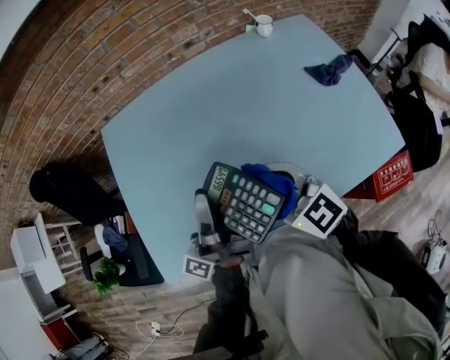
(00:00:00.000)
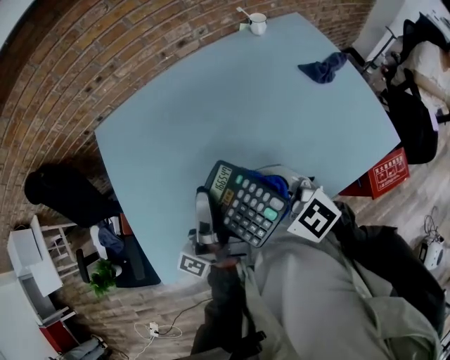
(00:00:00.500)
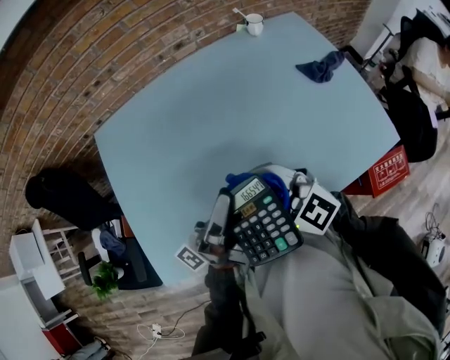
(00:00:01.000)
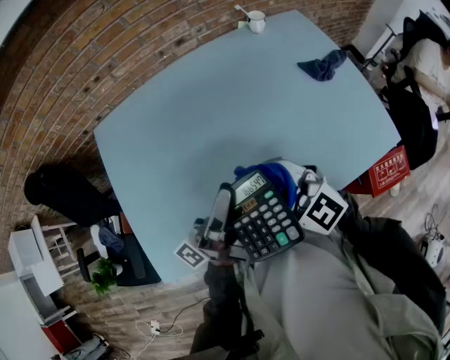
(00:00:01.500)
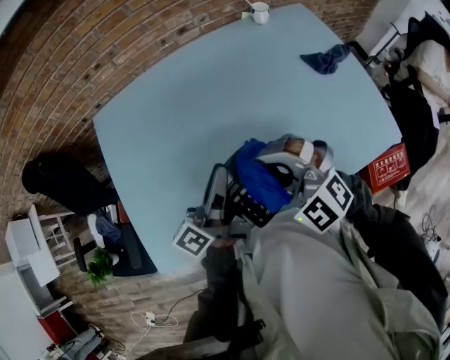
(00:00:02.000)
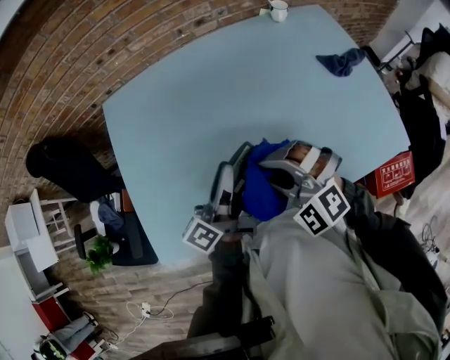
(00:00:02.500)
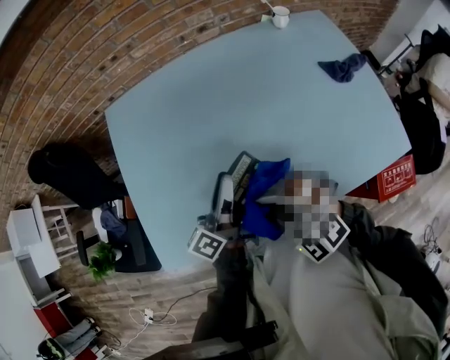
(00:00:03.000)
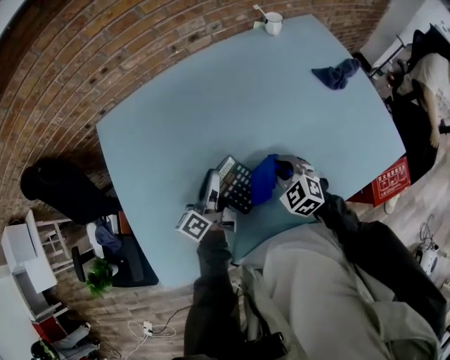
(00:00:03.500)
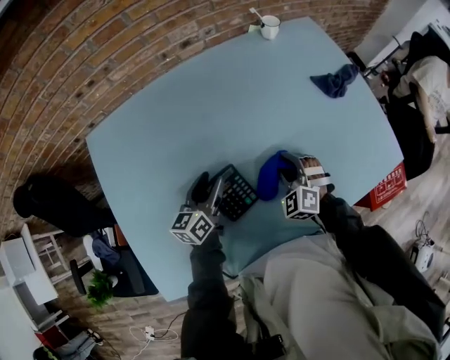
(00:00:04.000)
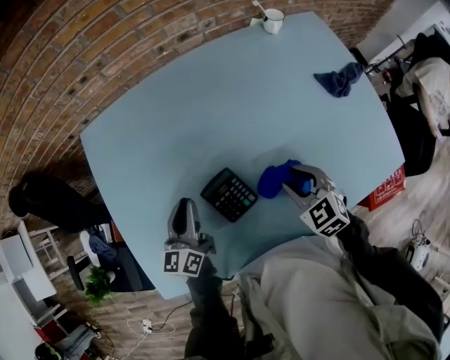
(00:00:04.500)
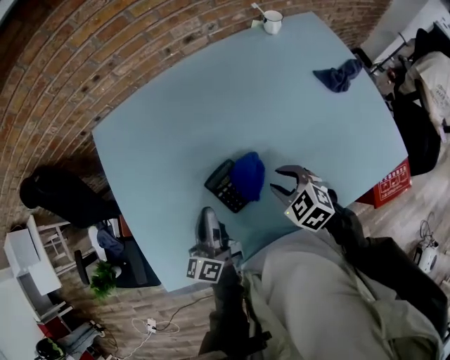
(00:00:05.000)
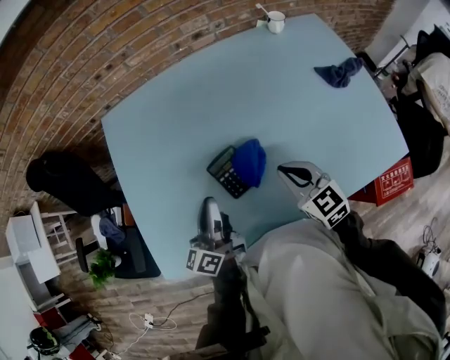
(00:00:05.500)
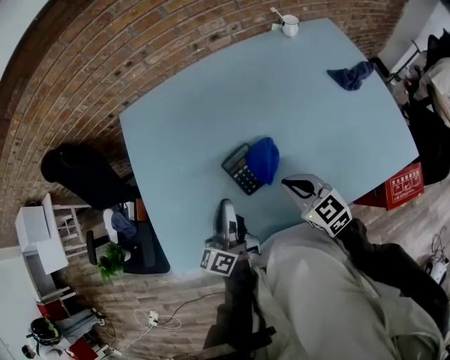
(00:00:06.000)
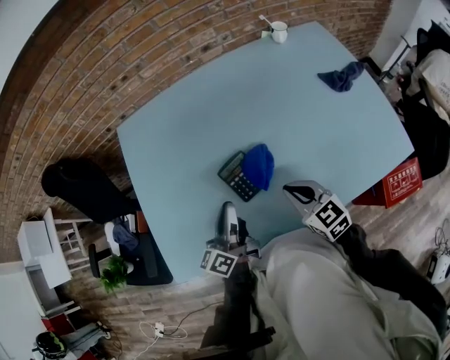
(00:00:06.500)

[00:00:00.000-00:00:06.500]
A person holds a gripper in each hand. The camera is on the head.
00:00:00.000 to 00:00:02.000: The left gripper goes roughly 5 cm to the right, and swivels some 30 degrees; the right gripper twists some 40 degrees counterclockwise, seen from behind.
00:00:02.000 to 00:00:04.500: The right gripper heads downward, covering approximately 15 cm, swivels roughly 50 degrees, and opens. Meanwhile the left gripper ends up about 20 cm from where it was, rotates around the line of its fingers by roughly 40 degrees, clockwise from behind, and opens, then closes once more.
00:00:04.500 to 00:00:06.500: The right gripper goes about 10 cm backward and to the left, turns by approximately 20 degrees, and closes up; the left gripper heads backward, covering roughly 15 cm, and changes its angle by roughly 30 degrees.

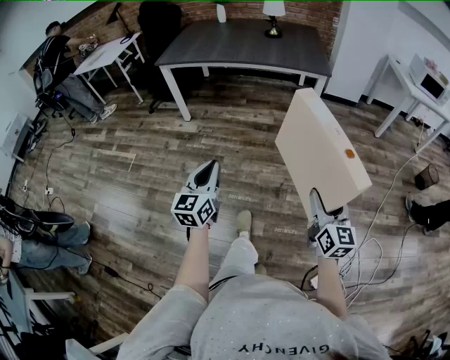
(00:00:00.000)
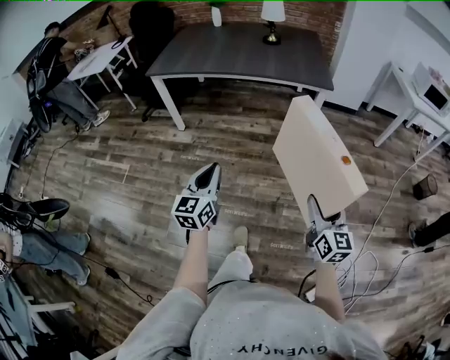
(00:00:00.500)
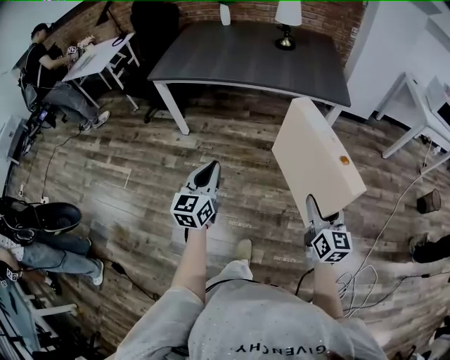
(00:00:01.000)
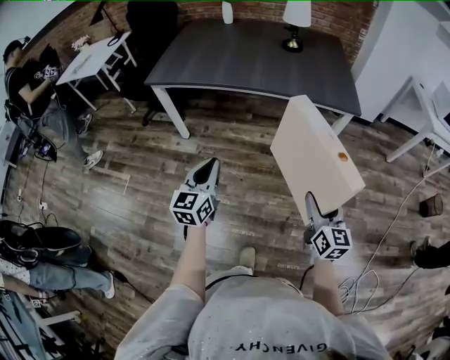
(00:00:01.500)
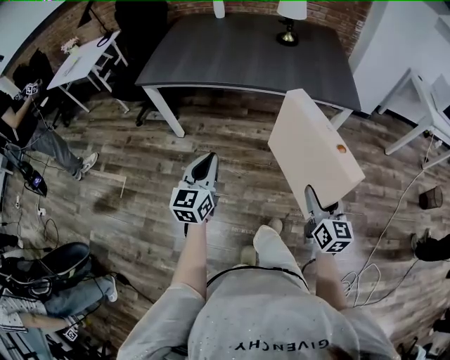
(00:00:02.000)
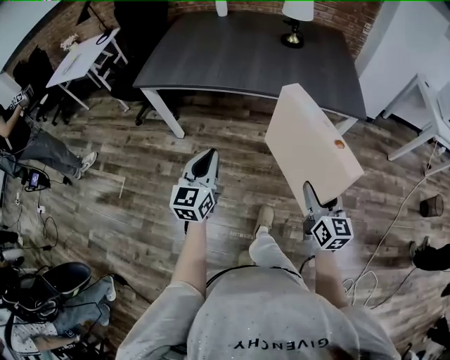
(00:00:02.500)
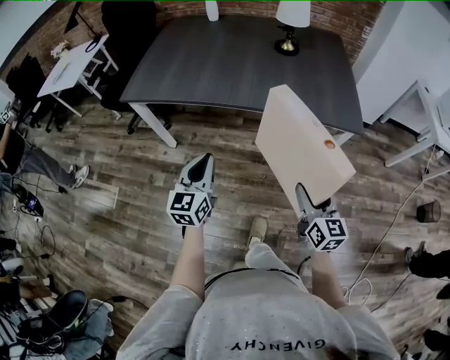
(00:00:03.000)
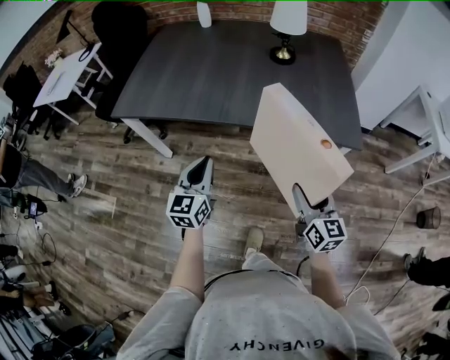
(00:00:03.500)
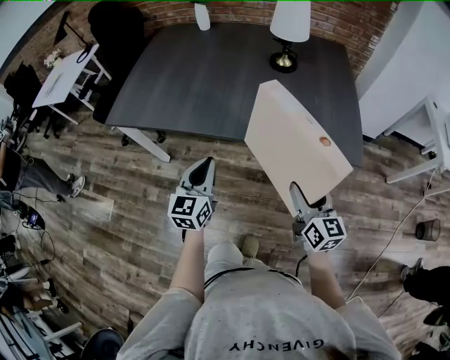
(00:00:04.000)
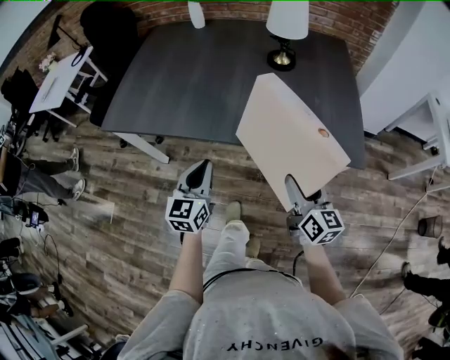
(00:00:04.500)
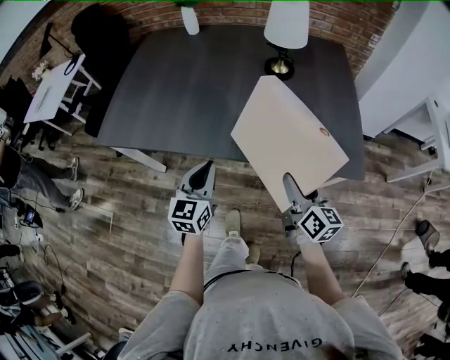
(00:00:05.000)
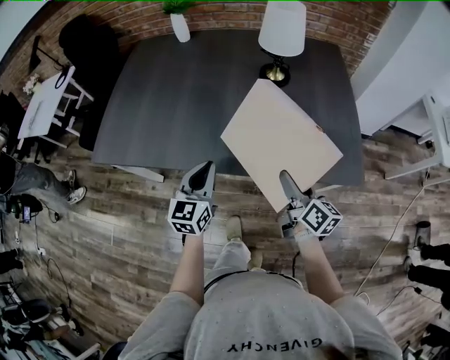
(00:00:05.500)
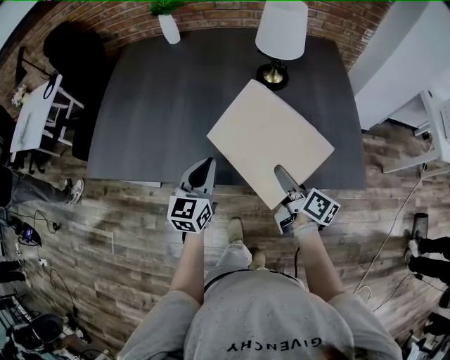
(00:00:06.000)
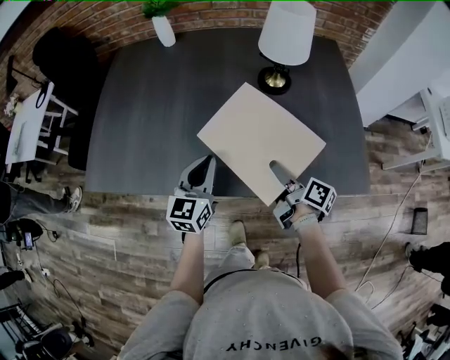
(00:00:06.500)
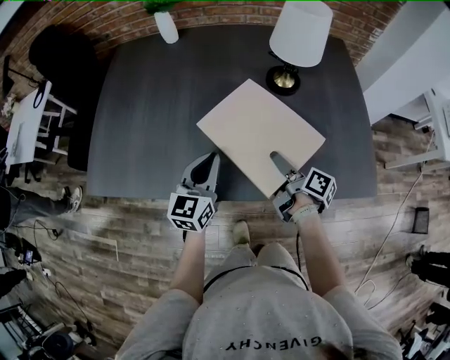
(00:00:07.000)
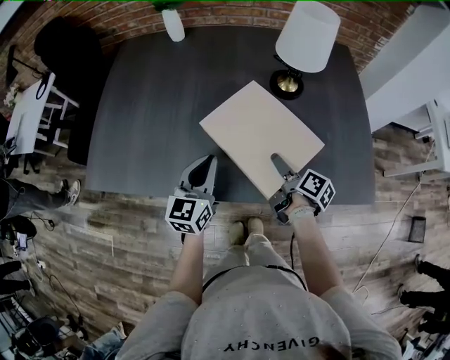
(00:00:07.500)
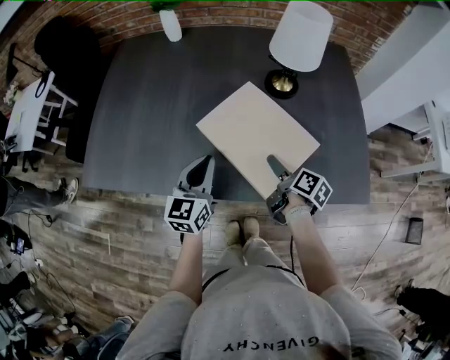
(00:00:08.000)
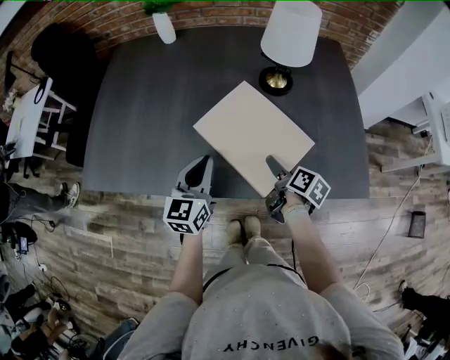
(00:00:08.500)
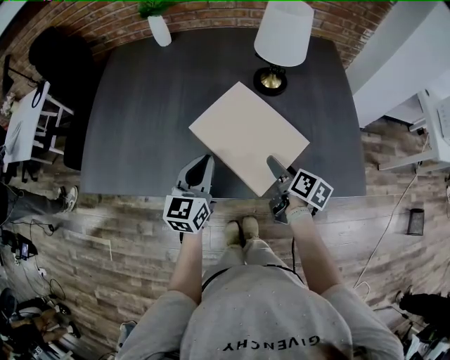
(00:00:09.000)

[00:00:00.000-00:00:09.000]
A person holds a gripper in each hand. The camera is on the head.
00:00:00.000 to 00:00:02.000: The two grippers travel together, forward, roughly 40 cm.
00:00:02.000 to 00:00:04.500: Both grippers move forward, about 35 cm.
00:00:04.500 to 00:00:07.000: Both grippers travel together forward, roughly 25 cm. The right gripper rolls clockwise, seen from behind, by roughly 50 degrees.
00:00:07.000 to 00:00:09.000: The right gripper travels to the right by about 5 cm, and swivels some 30 degrees.

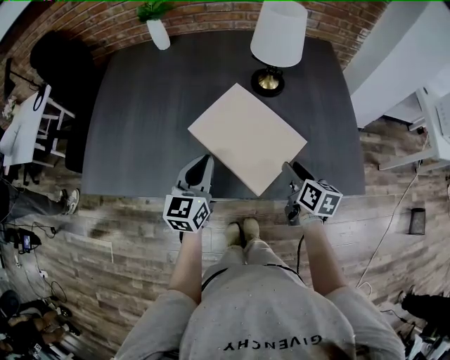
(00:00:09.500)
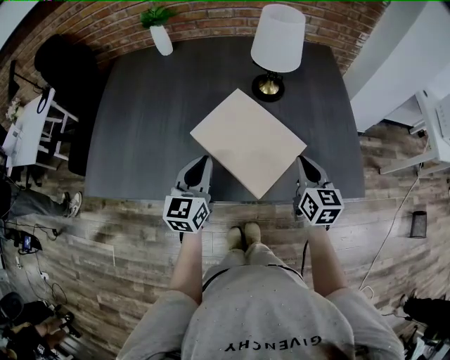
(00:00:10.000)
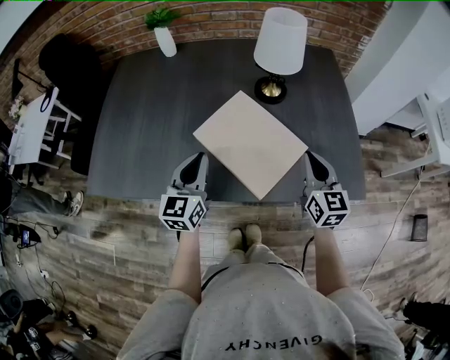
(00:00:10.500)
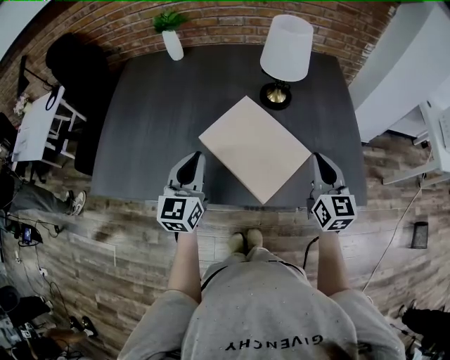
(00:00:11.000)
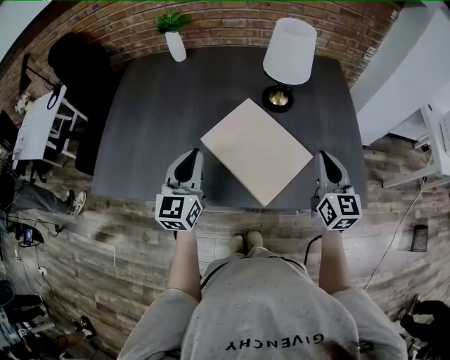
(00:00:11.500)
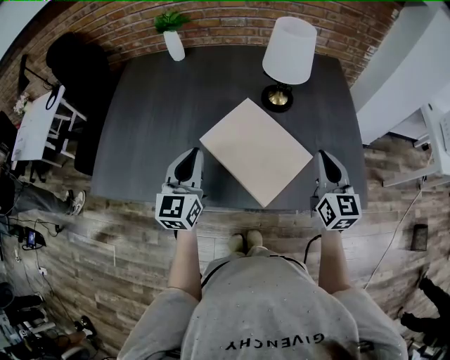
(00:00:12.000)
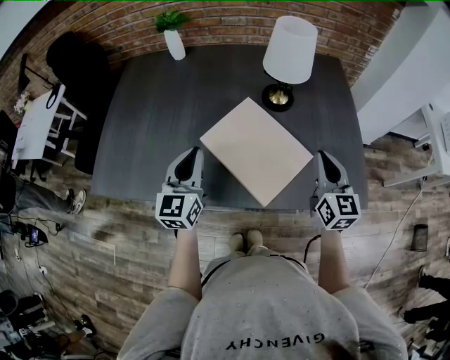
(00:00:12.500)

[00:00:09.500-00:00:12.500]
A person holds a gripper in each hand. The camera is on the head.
00:00:09.500 to 00:00:11.000: The left gripper moves upward, roughly 5 cm, while the right gripper goes roughly 15 cm upward, swivels roughly 40 degrees, and closes up.
00:00:11.000 to 00:00:12.500: The grippers make only small movements.

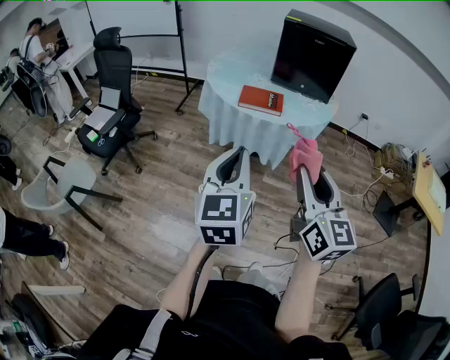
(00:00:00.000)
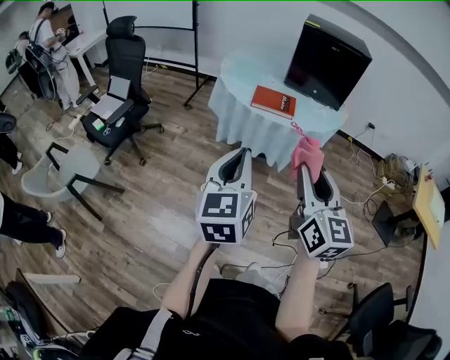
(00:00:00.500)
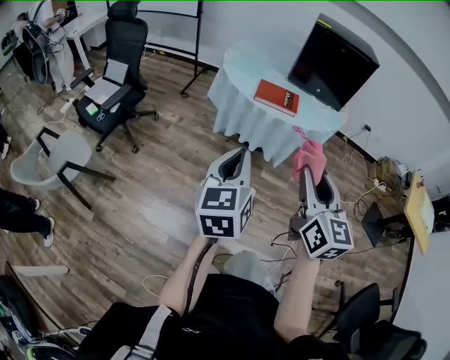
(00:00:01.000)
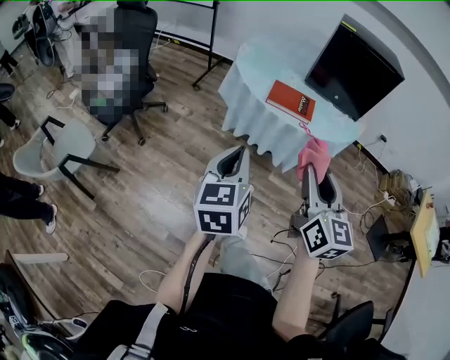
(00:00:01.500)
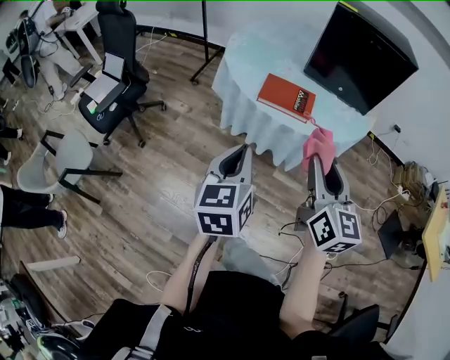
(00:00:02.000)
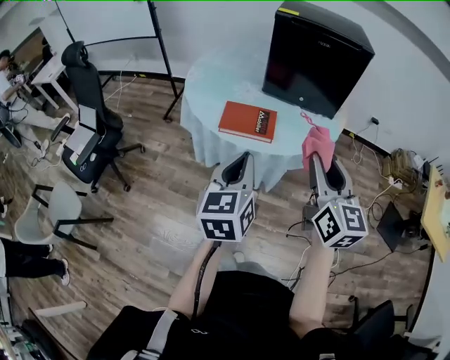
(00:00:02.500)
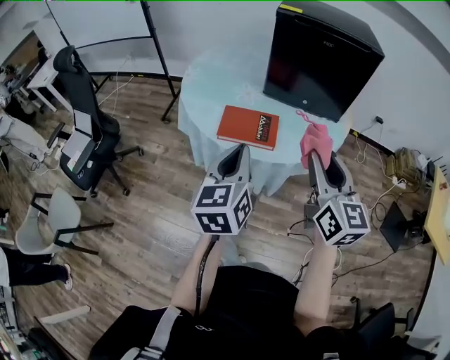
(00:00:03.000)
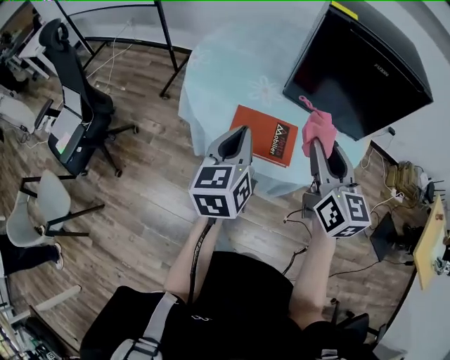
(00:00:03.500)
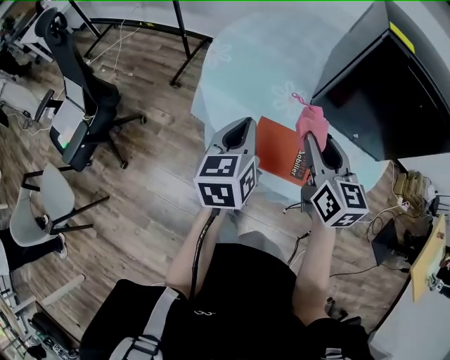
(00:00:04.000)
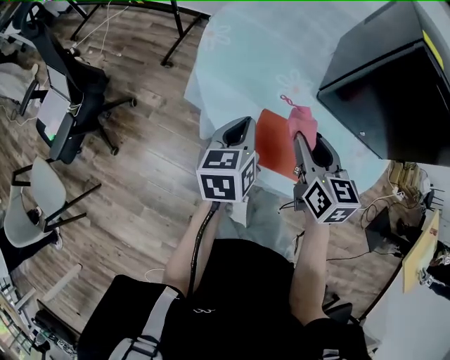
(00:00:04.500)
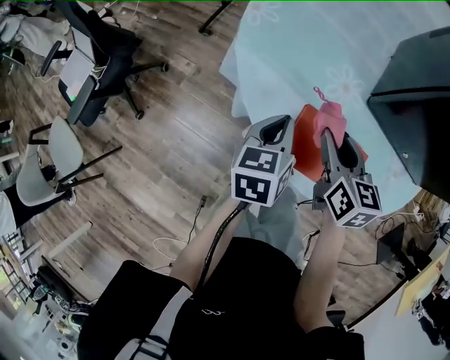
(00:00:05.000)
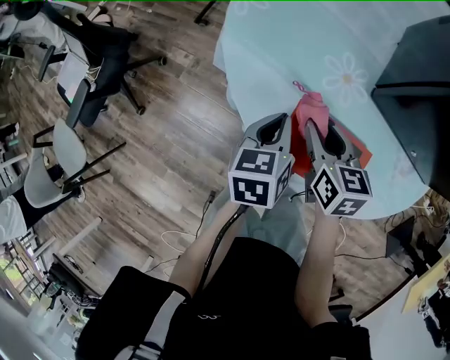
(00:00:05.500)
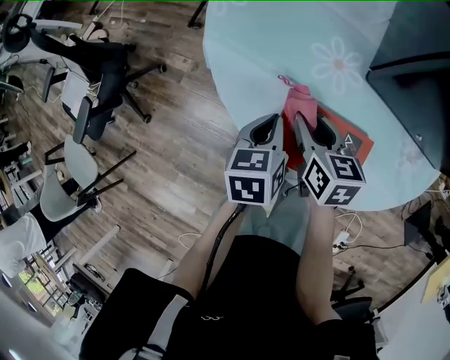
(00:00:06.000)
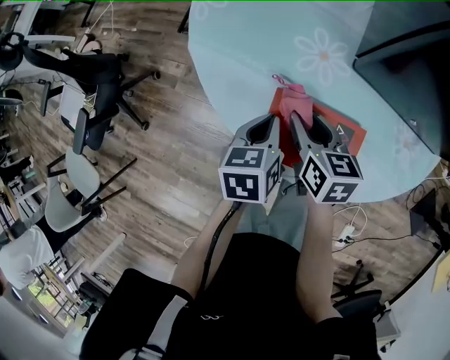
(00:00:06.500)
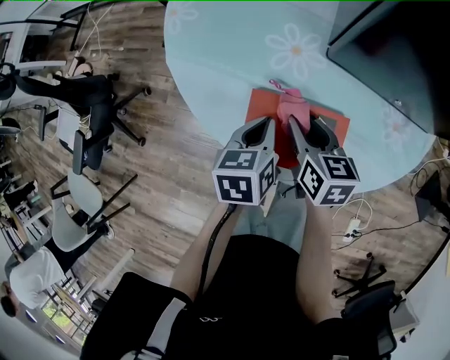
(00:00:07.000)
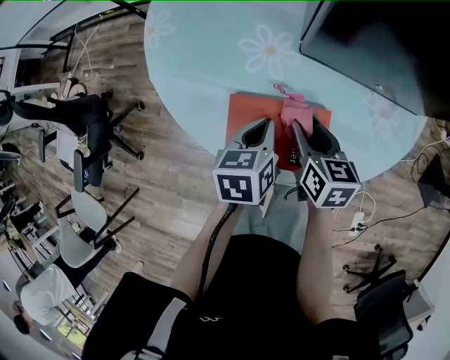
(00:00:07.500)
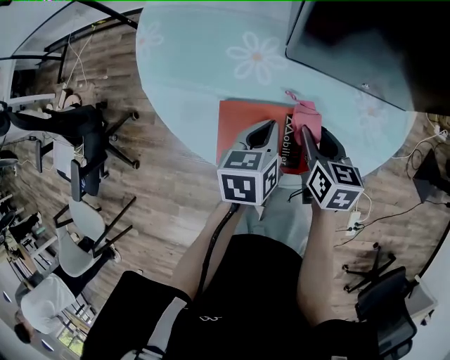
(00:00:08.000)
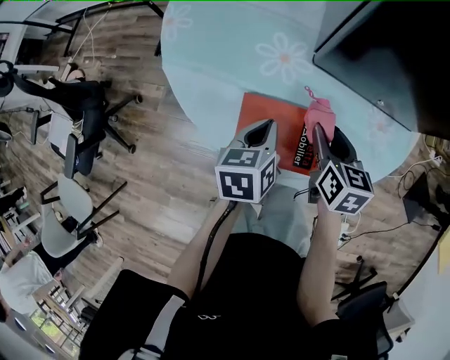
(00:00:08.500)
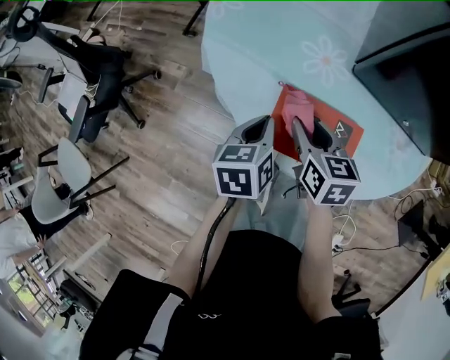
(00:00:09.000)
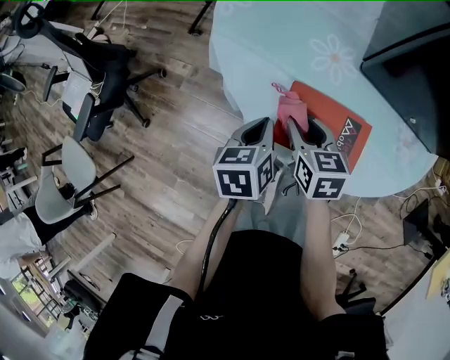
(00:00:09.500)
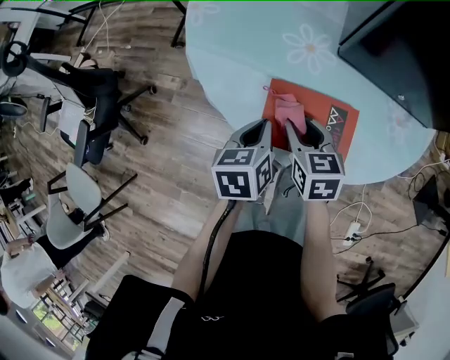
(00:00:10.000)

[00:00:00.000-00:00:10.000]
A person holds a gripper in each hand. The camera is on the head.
00:00:00.000 to 00:00:02.000: The left gripper travels forward and downward by some 20 cm. Meanwhile the right gripper goes approximately 25 cm forward.
00:00:02.000 to 00:00:04.000: Both grippers move forward, some 40 cm.
00:00:04.000 to 00:00:06.000: The grippers both shift downward by roughly 20 cm. The left gripper changes its angle by about 30 degrees. Meanwhile the right gripper changes its angle by roughly 30 degrees.
00:00:06.000 to 00:00:08.000: Both grippers travel together to the right, roughly 15 cm. The right gripper swivels about 20 degrees.
00:00:08.000 to 00:00:10.000: Both grippers travel together to the left, about 15 cm. The right gripper changes its angle by some 20 degrees.
